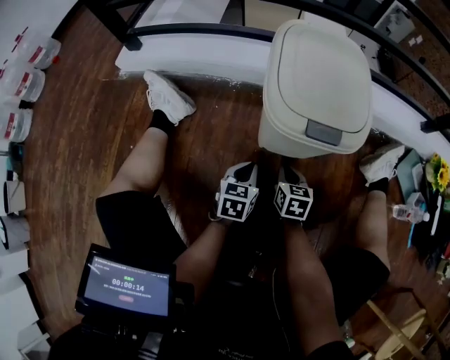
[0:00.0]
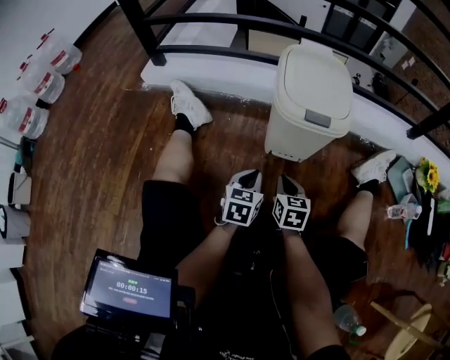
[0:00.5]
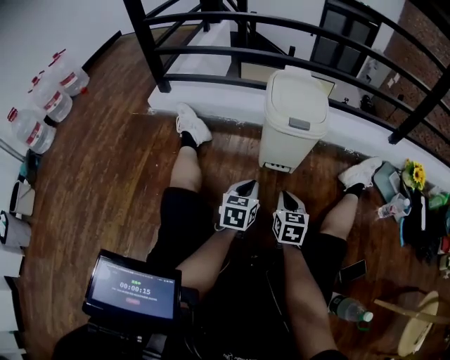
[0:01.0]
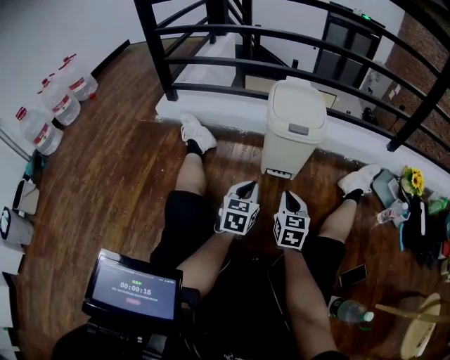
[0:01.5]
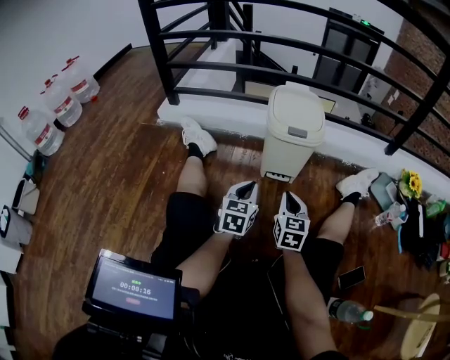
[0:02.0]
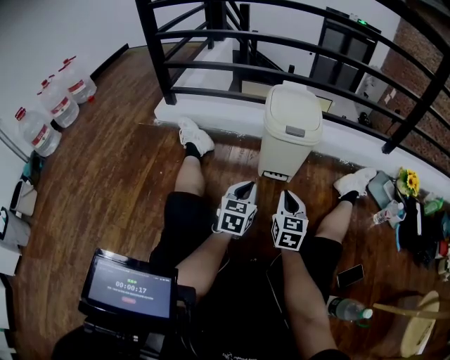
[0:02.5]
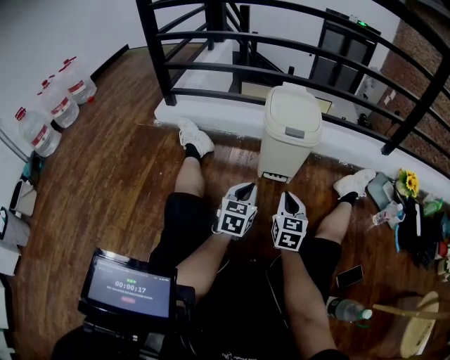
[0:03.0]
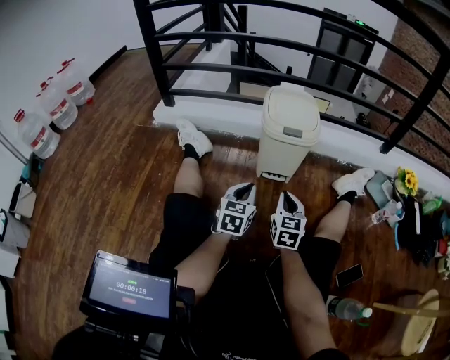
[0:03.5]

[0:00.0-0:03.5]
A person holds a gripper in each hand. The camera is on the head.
0:00.0 to 0:02.0: The grippers both shift upward and backward by about 25 cm. The left gripper changes its angle by approximately 20 degrees. The right gripper rotates some 30 degrees.
0:02.0 to 0:03.5: Neither gripper changes place.

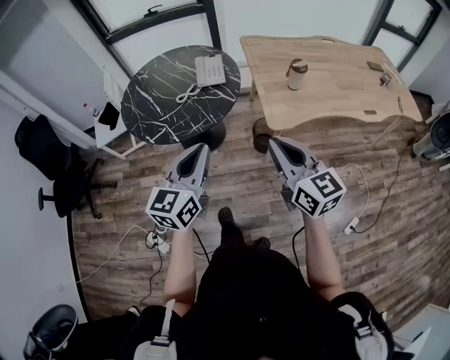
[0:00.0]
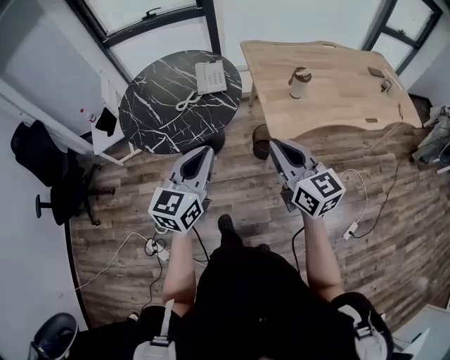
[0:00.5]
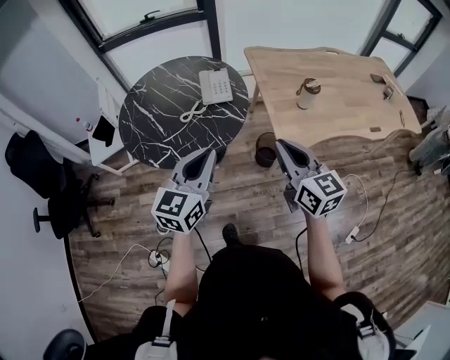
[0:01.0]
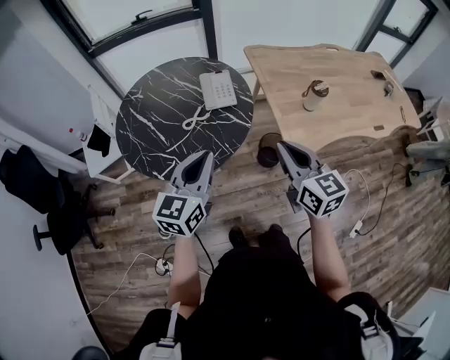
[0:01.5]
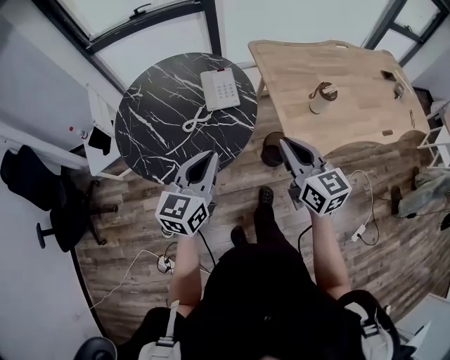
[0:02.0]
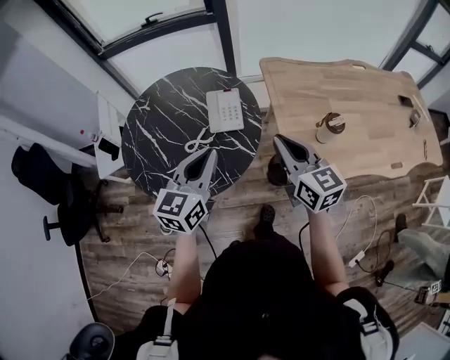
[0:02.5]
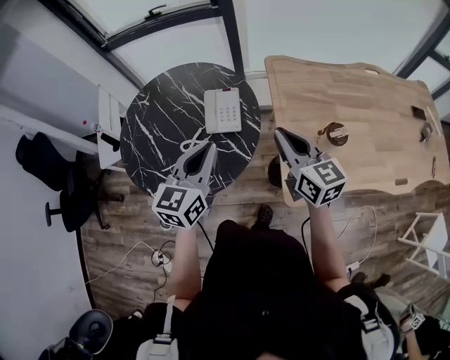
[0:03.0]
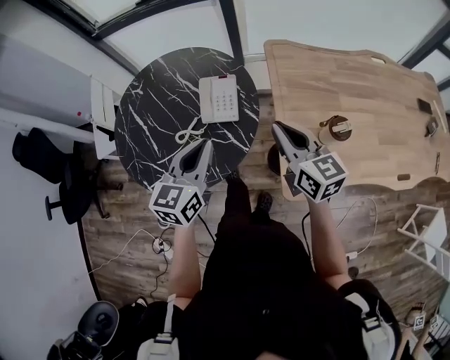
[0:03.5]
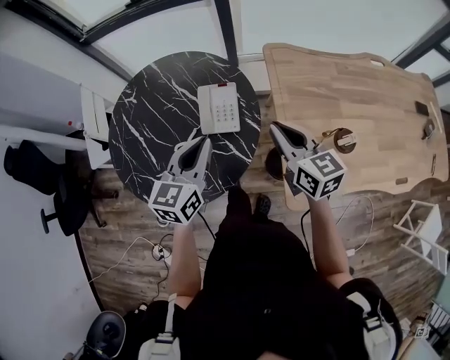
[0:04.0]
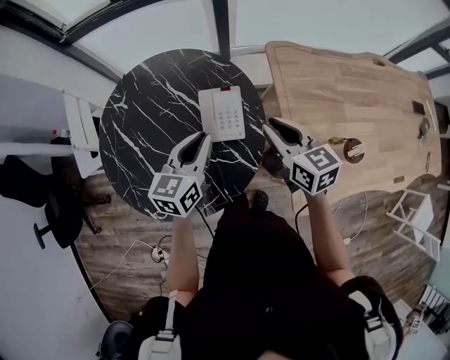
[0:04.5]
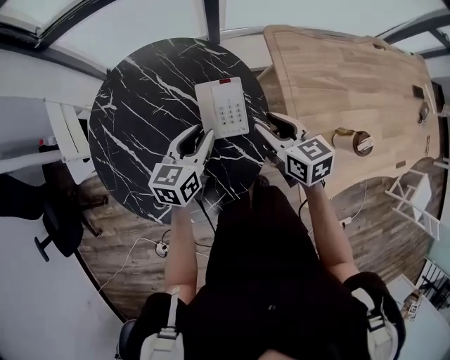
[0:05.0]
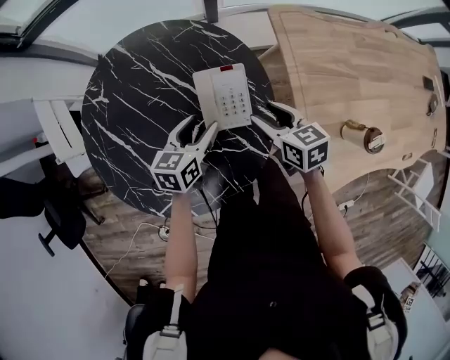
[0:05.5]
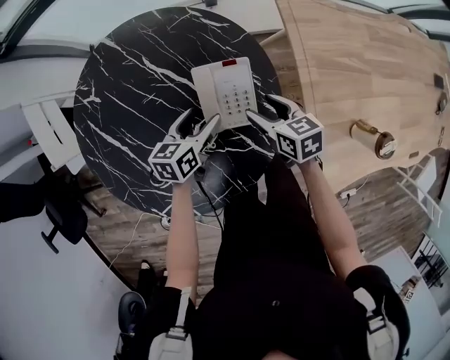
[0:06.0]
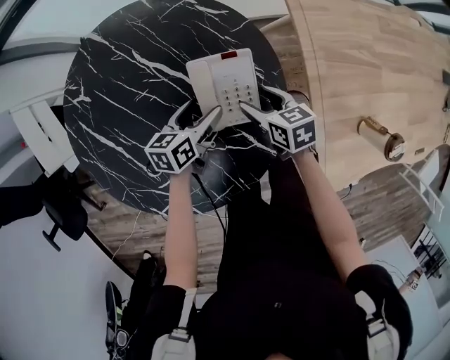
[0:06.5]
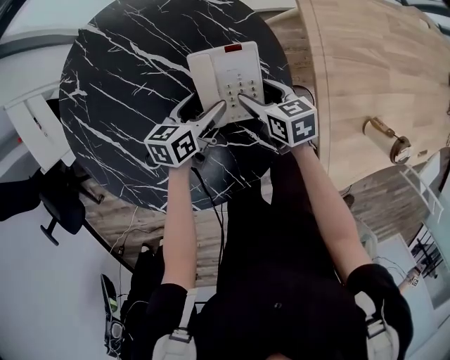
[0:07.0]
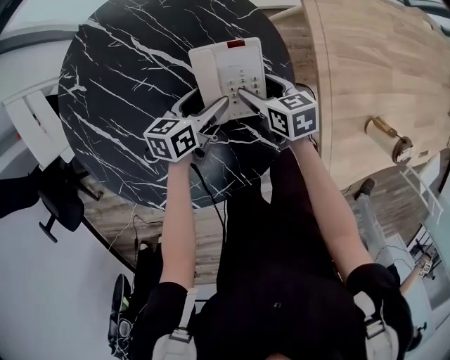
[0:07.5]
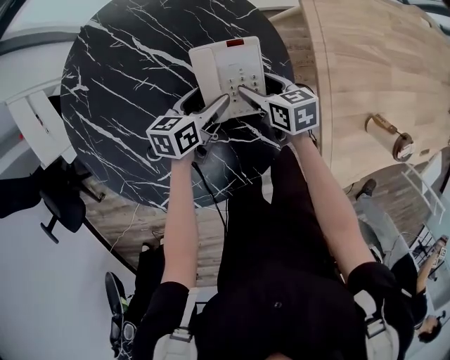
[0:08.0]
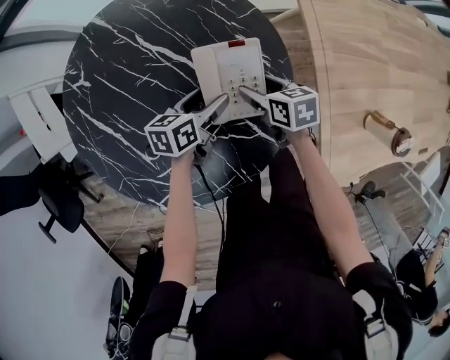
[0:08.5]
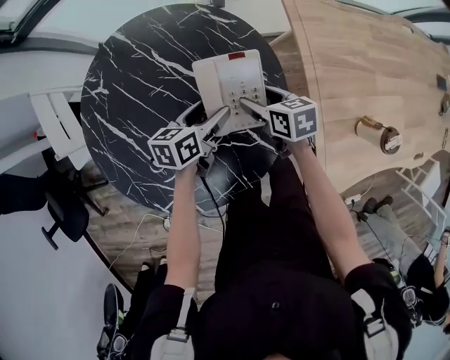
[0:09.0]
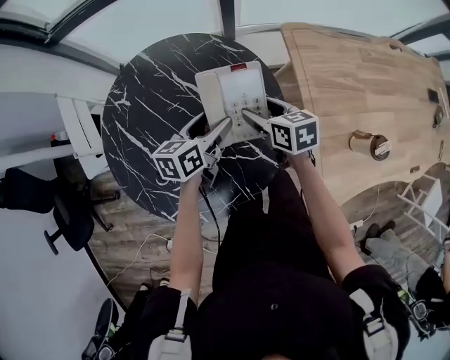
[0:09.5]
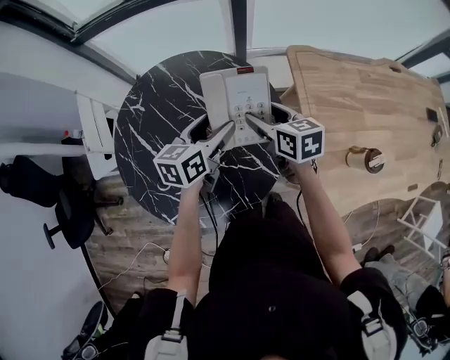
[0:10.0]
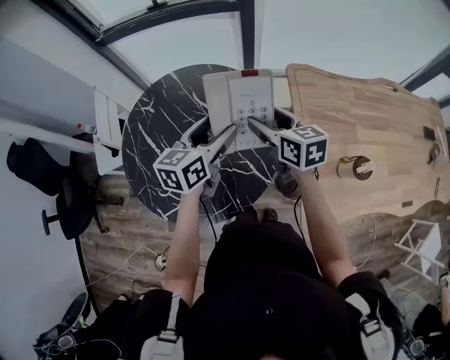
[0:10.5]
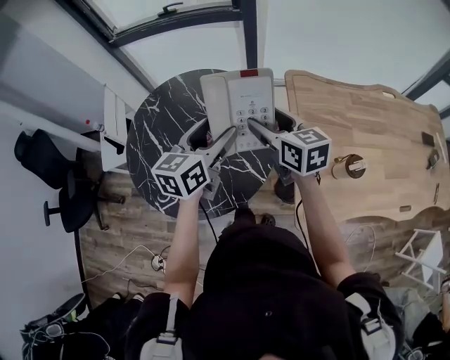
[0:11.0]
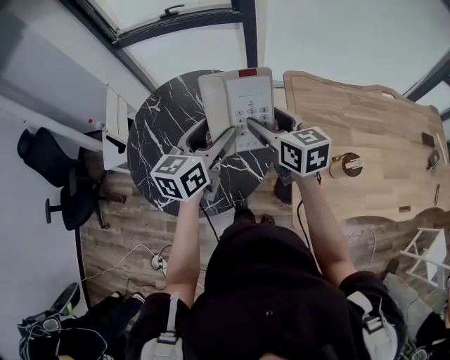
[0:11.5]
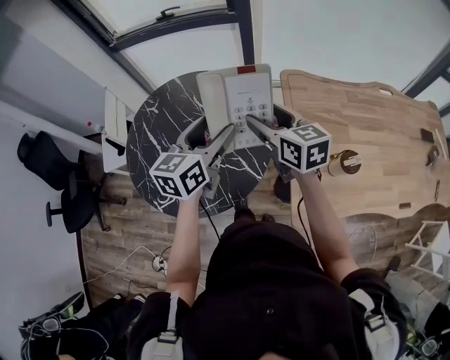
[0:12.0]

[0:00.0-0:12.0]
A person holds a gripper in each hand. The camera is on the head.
0:00.0 to 0:02.0: The grippers both shift forward by about 25 cm.
0:02.0 to 0:04.0: The two grippers go some 25 cm forward.
0:04.0 to 0:06.0: The left gripper moves downward and forward, roughly 30 cm, rotates approximately 30 degrees, and opens. Meanwhile the right gripper is displaced downward, forward and to the left by roughly 30 cm, turns by about 30 degrees, and opens up.
0:06.0 to 0:08.0: Both grippers travel together downward, roughly 5 cm.
0:08.0 to 0:10.0: Both grippers move upward, some 25 cm. The left gripper turns by some 20 degrees.
0:10.0 to 0:12.0: Both grippers move upward, backward and to the right, approximately 20 cm.

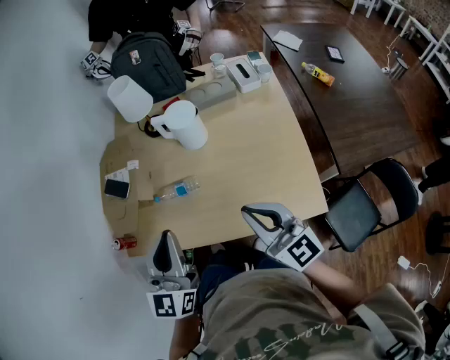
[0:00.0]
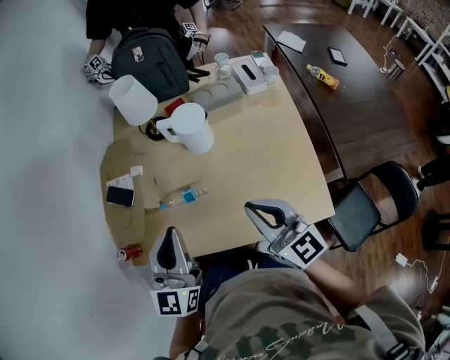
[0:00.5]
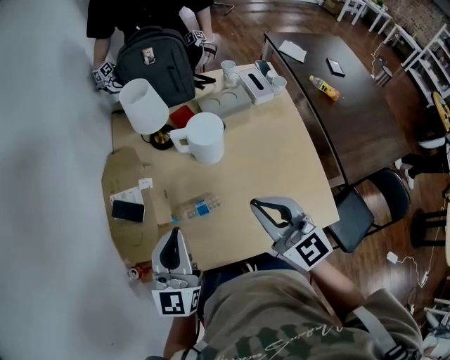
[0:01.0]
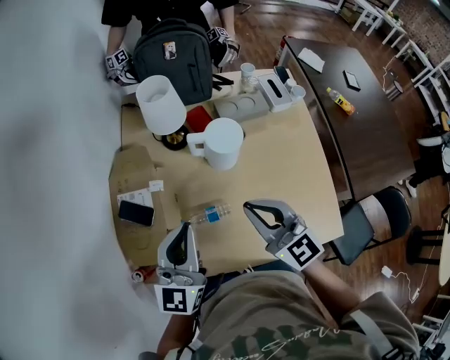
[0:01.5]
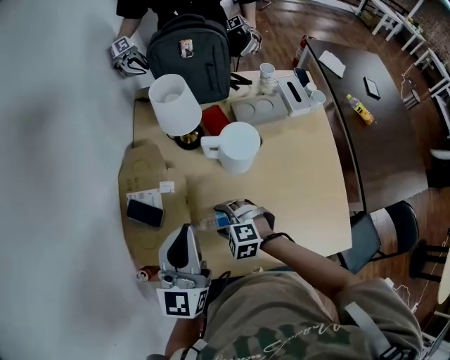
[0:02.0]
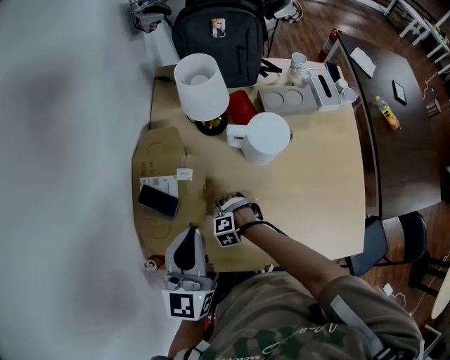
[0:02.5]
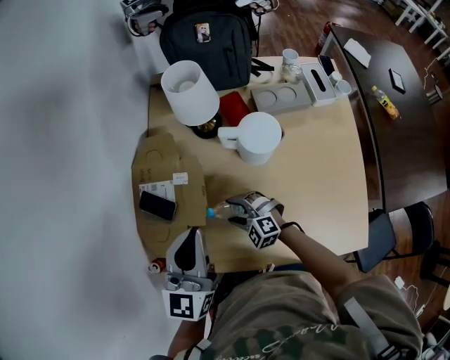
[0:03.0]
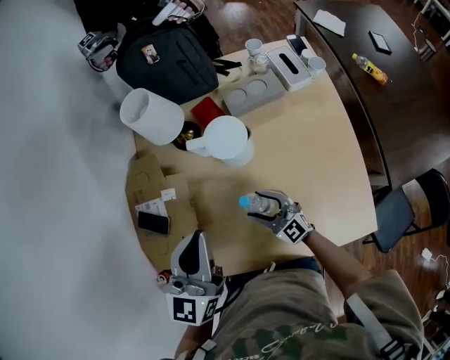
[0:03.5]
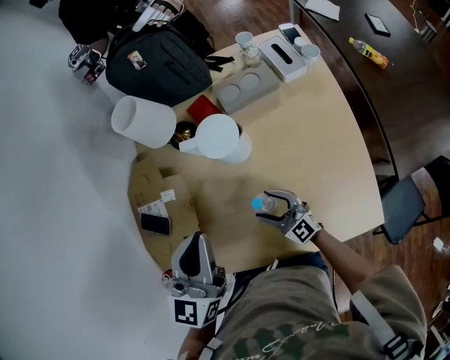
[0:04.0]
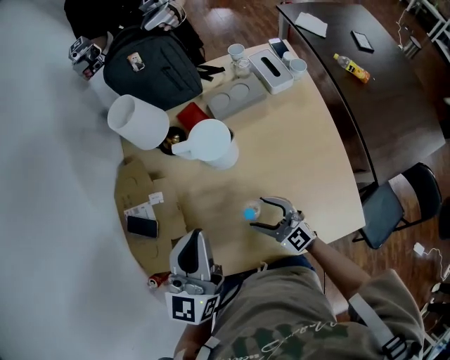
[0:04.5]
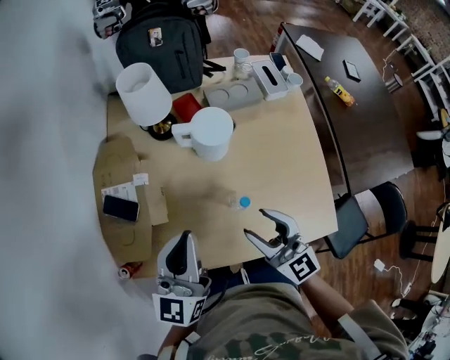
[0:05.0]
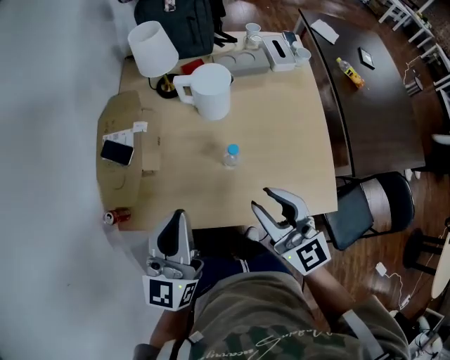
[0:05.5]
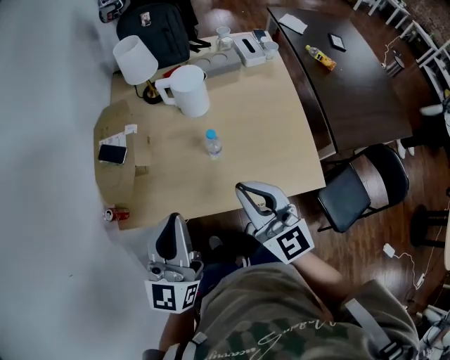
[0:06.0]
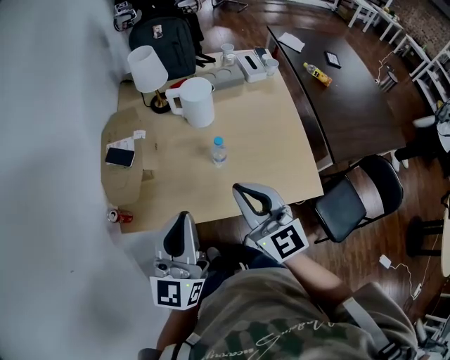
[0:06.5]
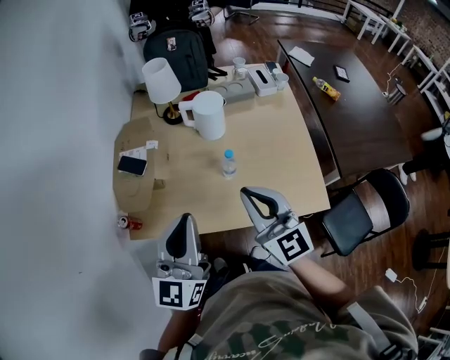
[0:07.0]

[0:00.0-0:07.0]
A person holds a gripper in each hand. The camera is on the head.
0:00.0 to 0:02.0: The left gripper moves forward, some 20 cm; the right gripper goes about 40 cm downward, to the left and forward, tilts its fingers some 60 degrees downward, and opens.
0:02.0 to 0:03.5: The left gripper shifts by approximately 10 cm. The right gripper travels downward and back again, roughly 15 cm each way, and points its fingers about 50 degrees further upward.
0:03.5 to 0:05.0: The left gripper changes place by some 5 cm. The right gripper goes some 20 cm upward.
0:05.0 to 0:07.0: The right gripper heads backward and upward, covering about 15 cm, and closes. Meanwhile the left gripper is displaced backward by roughly 20 cm.

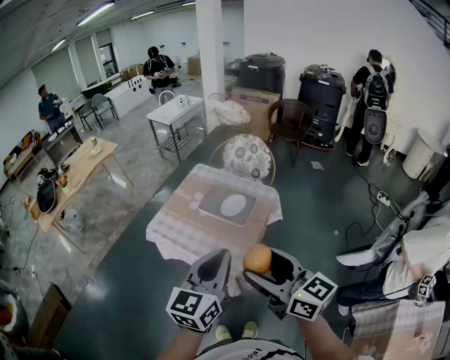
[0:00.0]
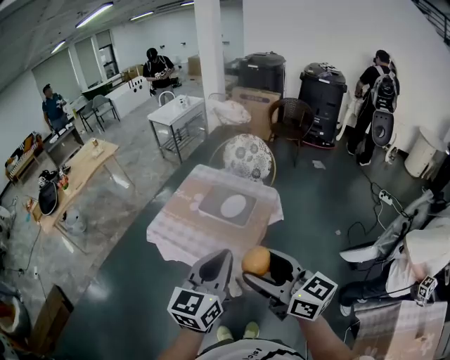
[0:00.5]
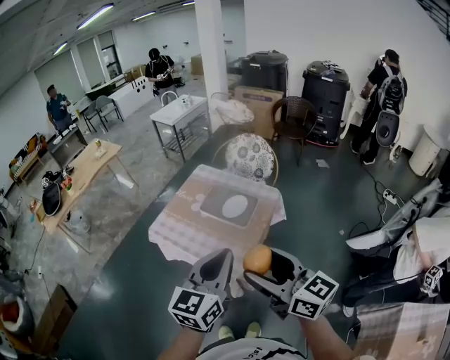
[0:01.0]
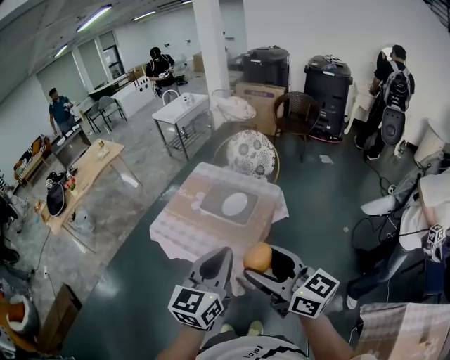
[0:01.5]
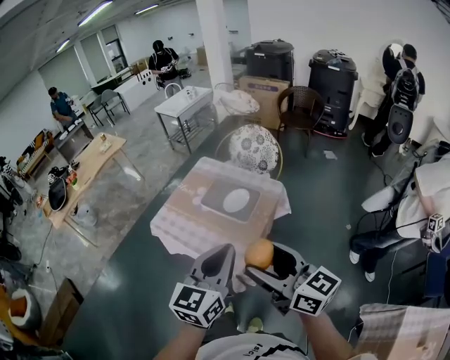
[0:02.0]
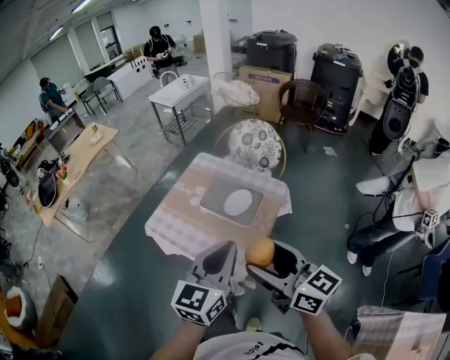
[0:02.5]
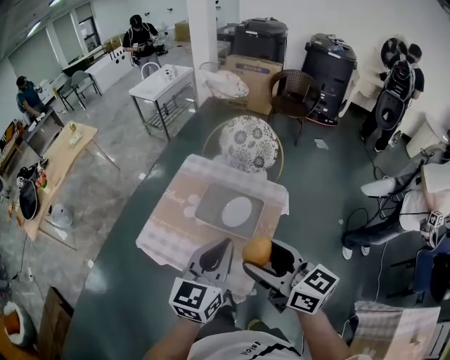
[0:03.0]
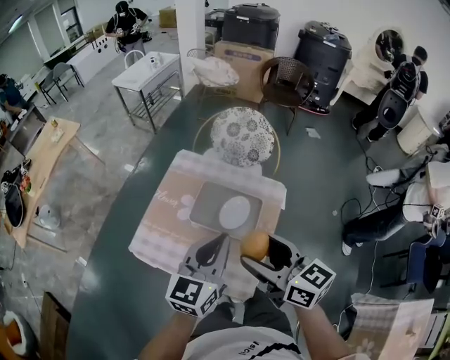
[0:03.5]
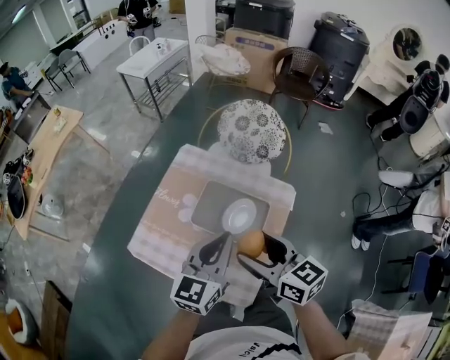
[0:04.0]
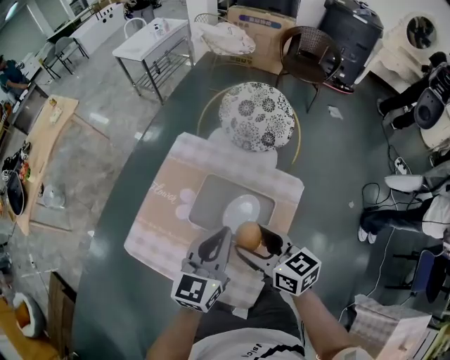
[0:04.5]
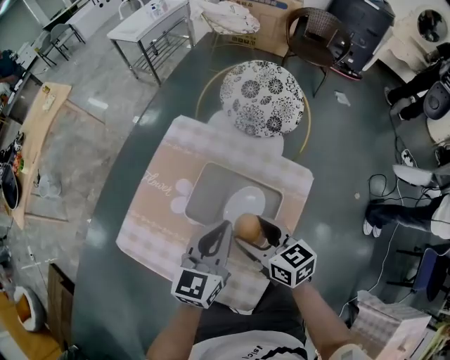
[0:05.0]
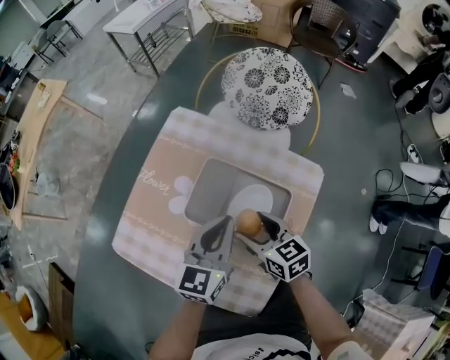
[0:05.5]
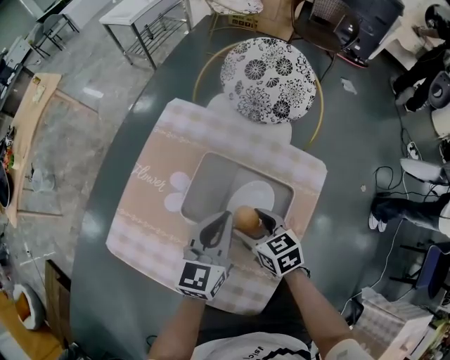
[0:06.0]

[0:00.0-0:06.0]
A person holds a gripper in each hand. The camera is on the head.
0:00.0 to 0:02.0: Both grippers travel together to the right, about 5 cm.
0:02.0 to 0:04.0: Both grippers travel together forward and downward, approximately 35 cm. The right gripper changes its angle by some 20 degrees.
0:04.0 to 0:06.0: The left gripper moves downward and forward, some 25 cm. The right gripper travels downward by some 30 cm, and turns by roughly 30 degrees.
